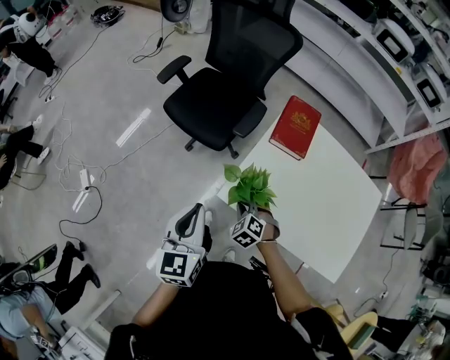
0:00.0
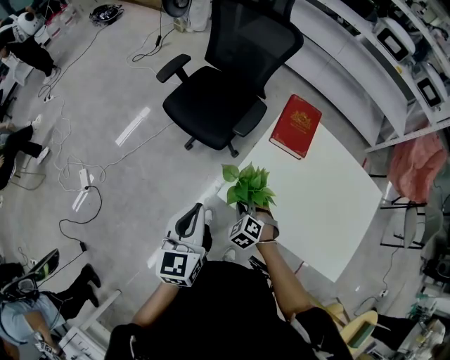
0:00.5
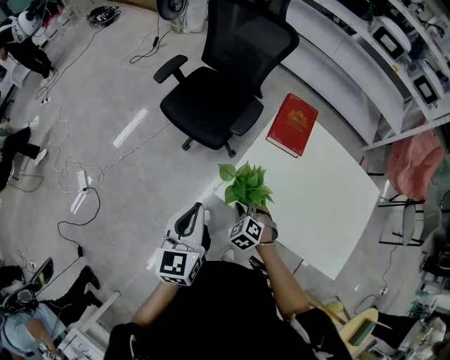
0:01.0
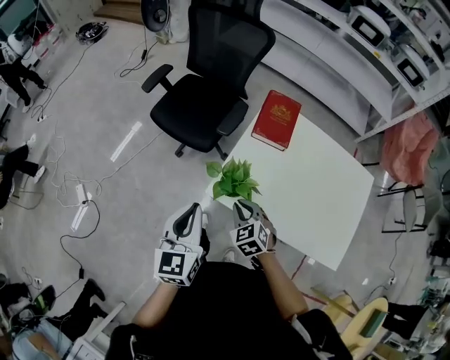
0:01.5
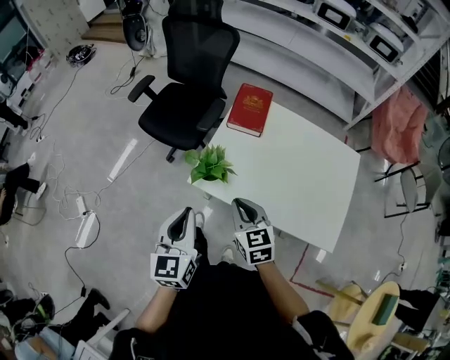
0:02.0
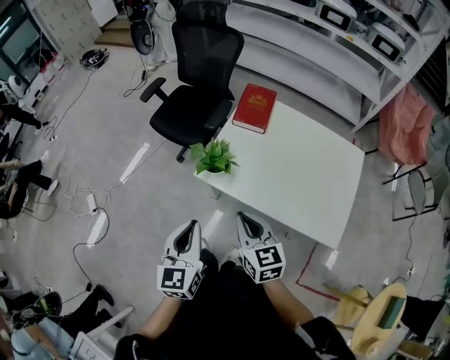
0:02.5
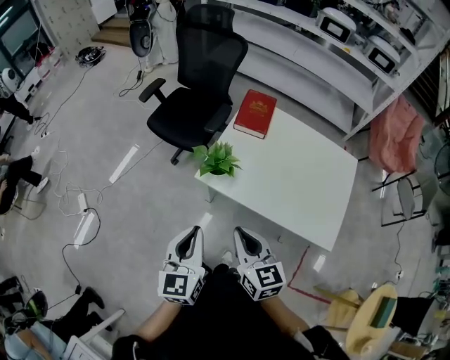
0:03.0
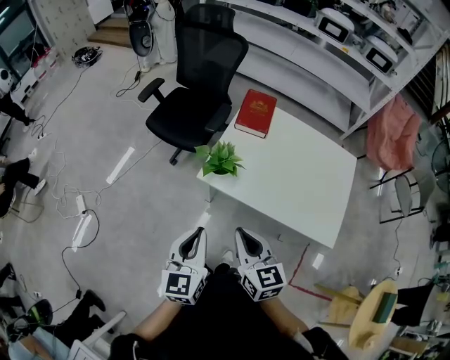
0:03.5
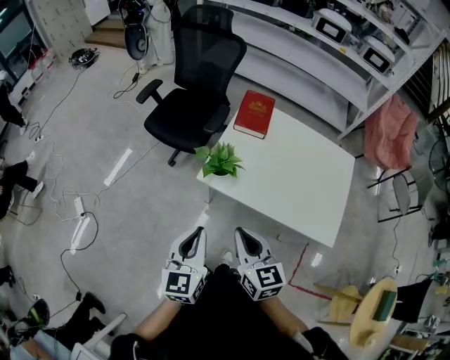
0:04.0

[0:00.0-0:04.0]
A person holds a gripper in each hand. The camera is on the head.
0:00.0 to 0:02.0: The right gripper moves upward, backward and to the right, about 25 cm, and tilts its fingers roughly 30 degrees upward; the left gripper heads backward and to the right, covering roughly 15 cm.
0:02.0 to 0:04.0: The right gripper goes about 15 cm backward, upward and to the left. The left gripper travels backward by some 10 cm.

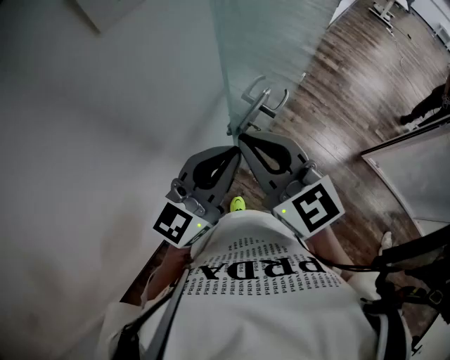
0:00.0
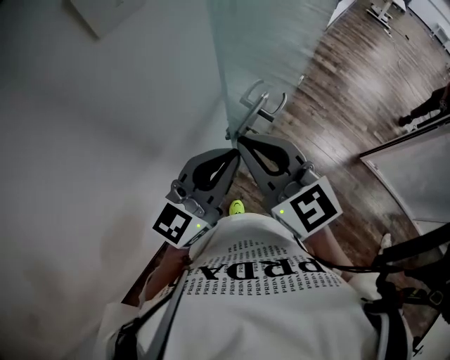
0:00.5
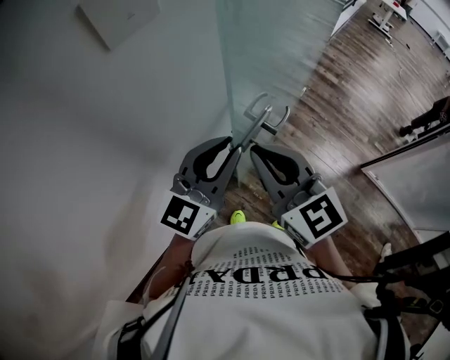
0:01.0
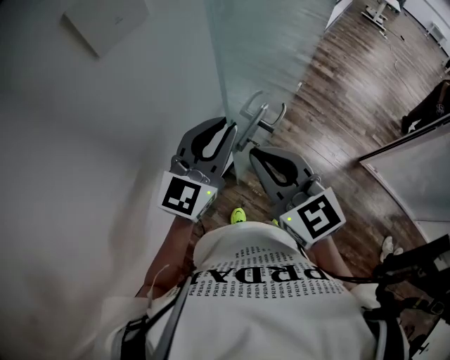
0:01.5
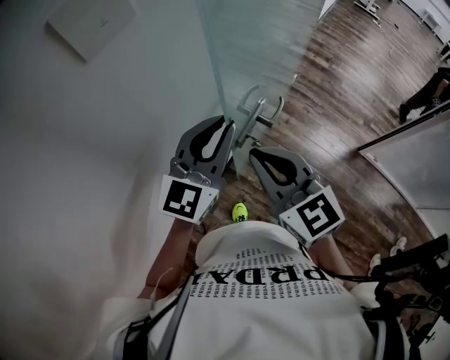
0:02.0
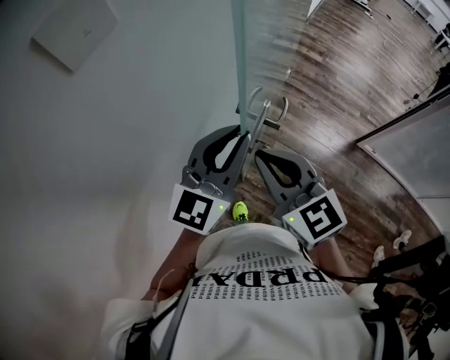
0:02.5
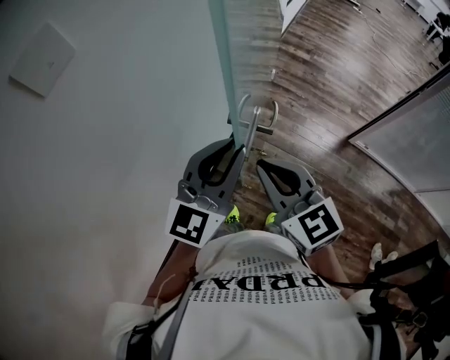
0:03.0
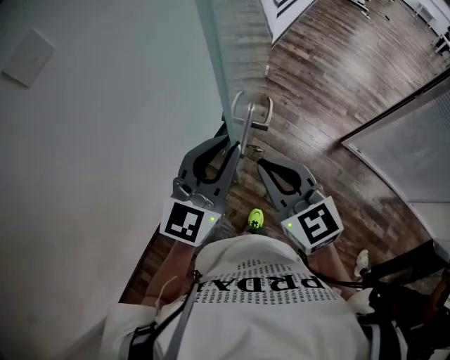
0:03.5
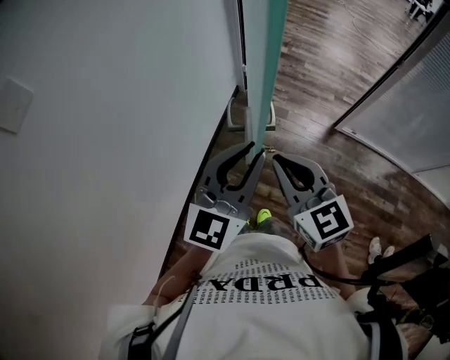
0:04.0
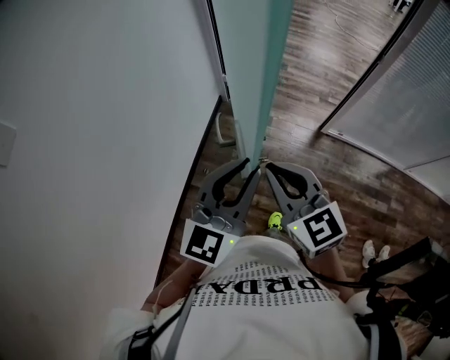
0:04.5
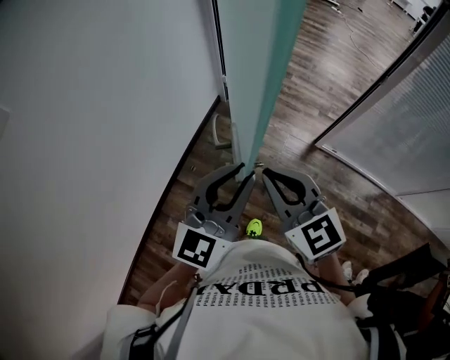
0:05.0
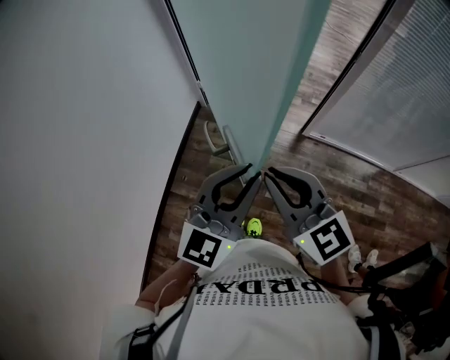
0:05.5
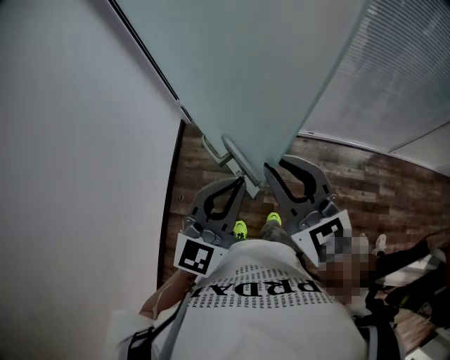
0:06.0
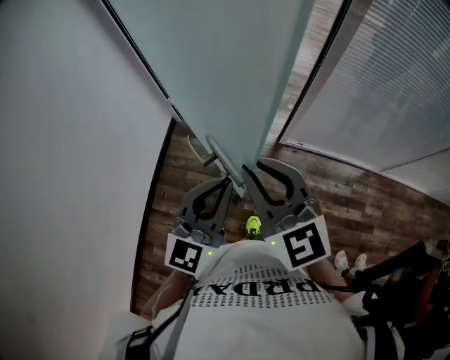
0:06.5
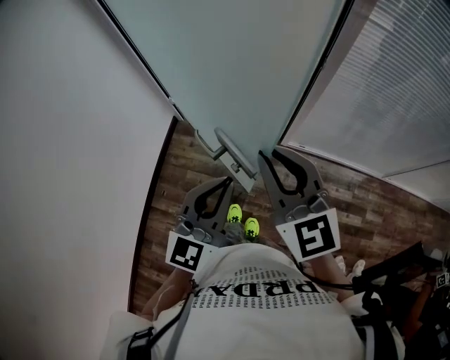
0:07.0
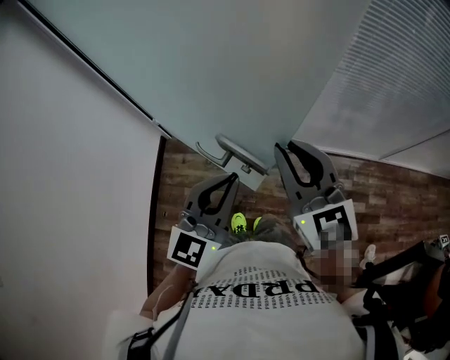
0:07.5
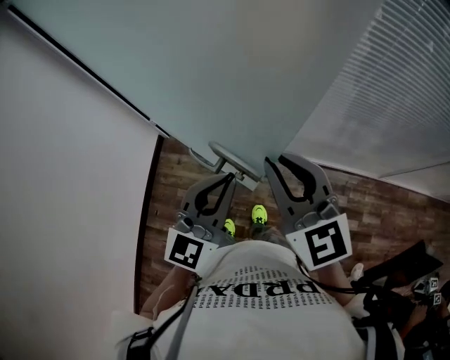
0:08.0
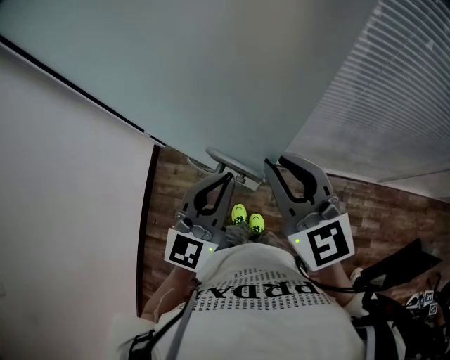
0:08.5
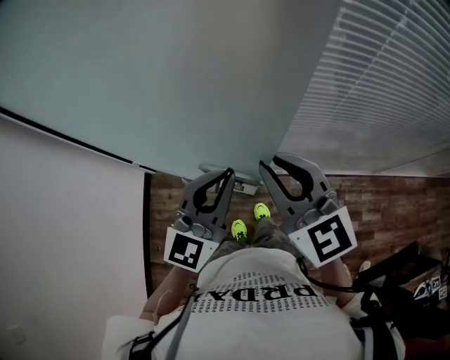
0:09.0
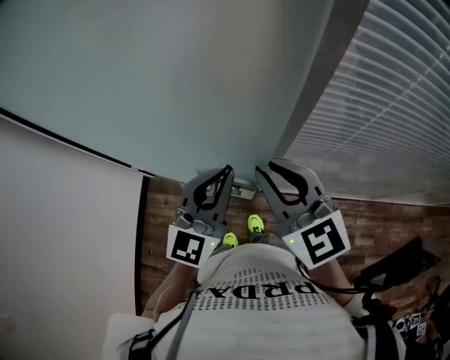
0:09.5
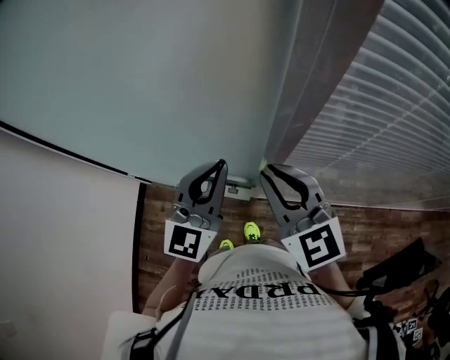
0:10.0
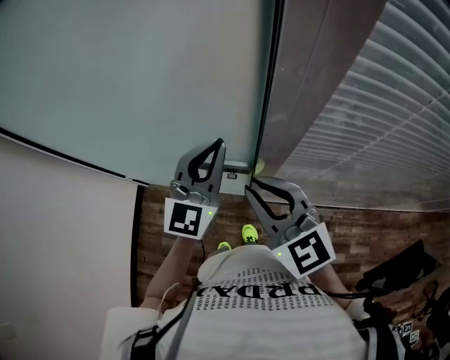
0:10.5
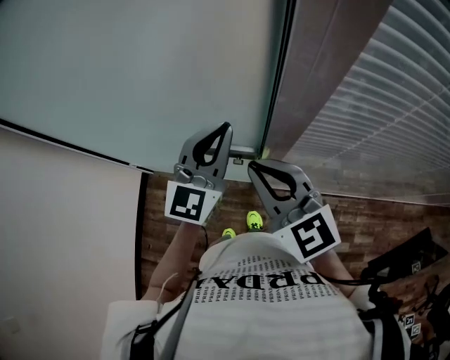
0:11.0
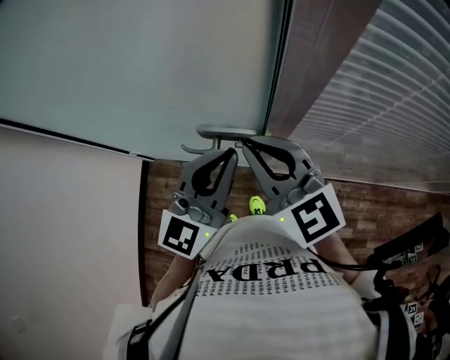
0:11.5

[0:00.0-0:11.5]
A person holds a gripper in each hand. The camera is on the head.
0:00.0 to 0:02.0: The left gripper travels forward by approximately 10 cm.
0:02.0 to 0:04.0: The right gripper is displaced to the right and downward by roughly 30 cm, and turns by roughly 20 degrees; the left gripper travels to the right by roughly 25 cm.
0:04.0 to 0:06.0: The left gripper travels to the right and downward by about 15 cm. Meanwhile the right gripper is displaced to the right by some 15 cm, and rotates approximately 20 degrees.
0:06.0 to 0:09.5: The grippers make only small movements.
0:09.5 to 0:11.5: The left gripper goes forward and returns, roughly 5 cm each way.

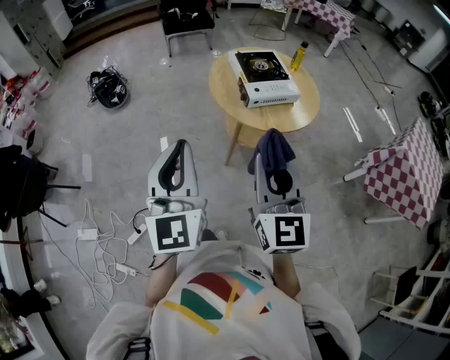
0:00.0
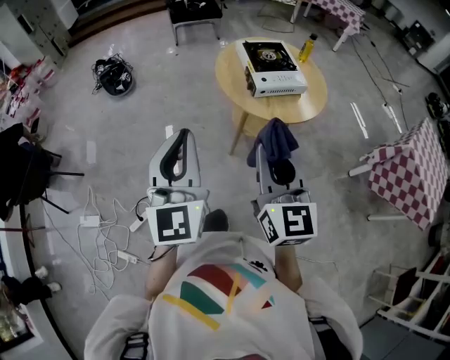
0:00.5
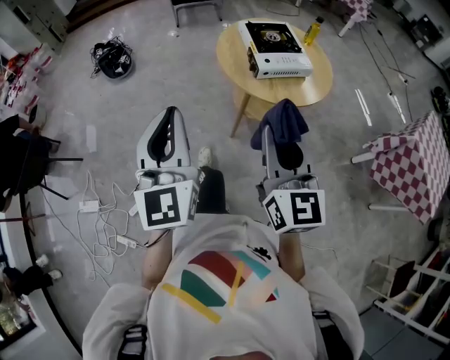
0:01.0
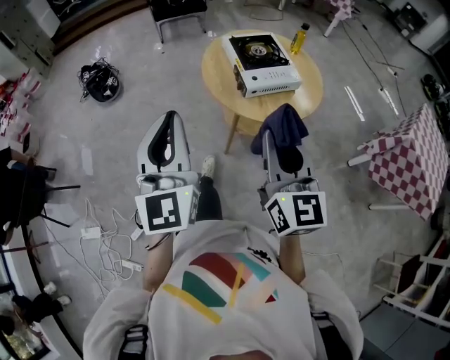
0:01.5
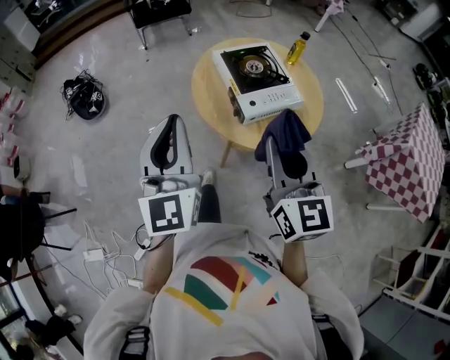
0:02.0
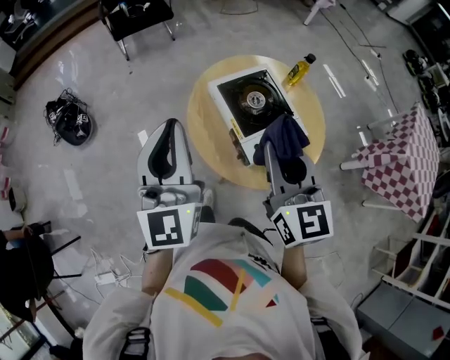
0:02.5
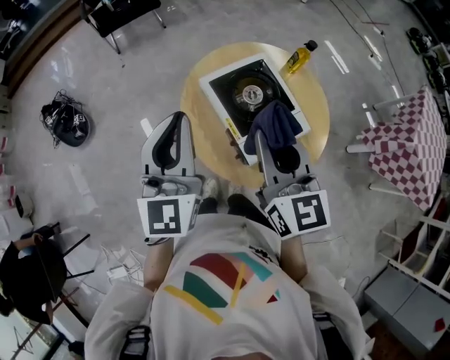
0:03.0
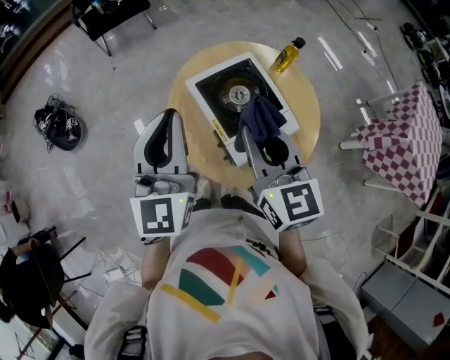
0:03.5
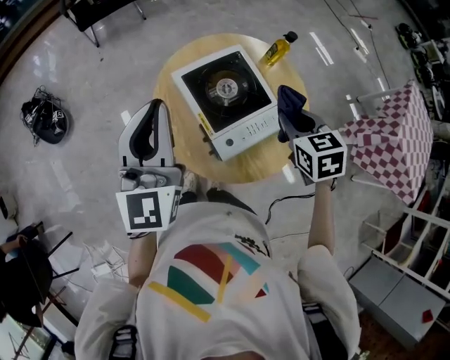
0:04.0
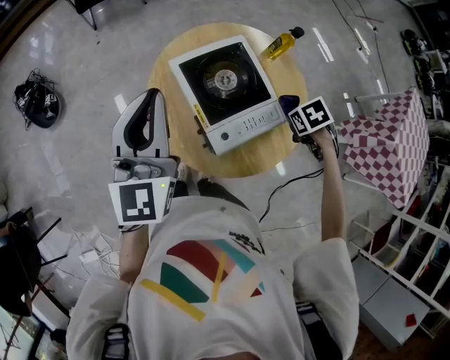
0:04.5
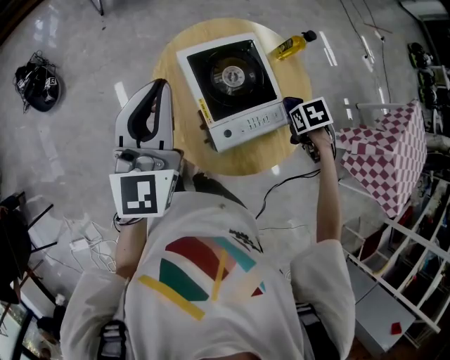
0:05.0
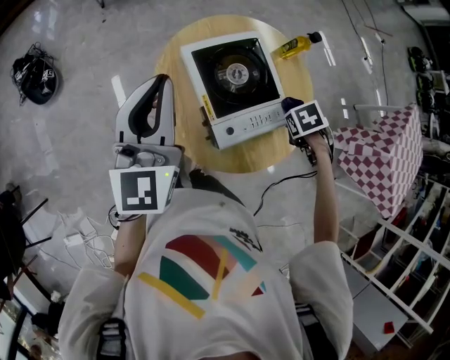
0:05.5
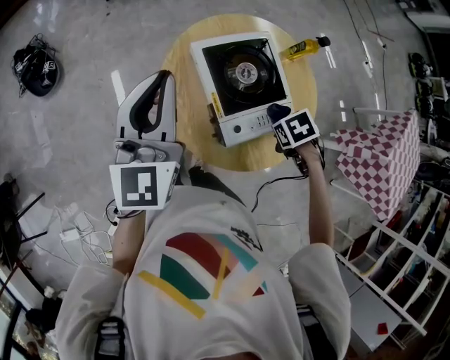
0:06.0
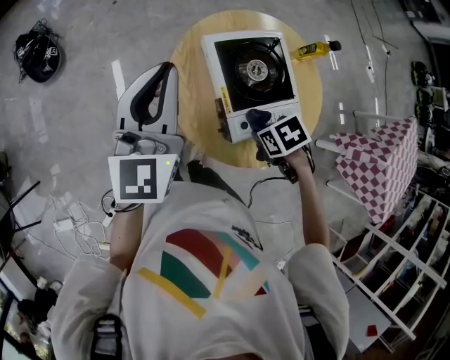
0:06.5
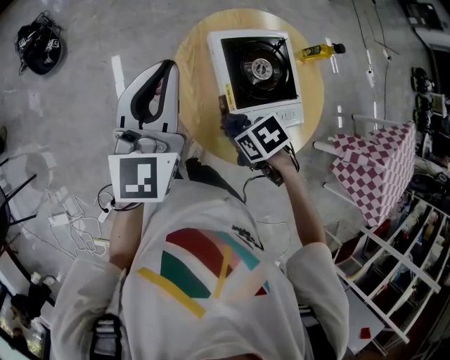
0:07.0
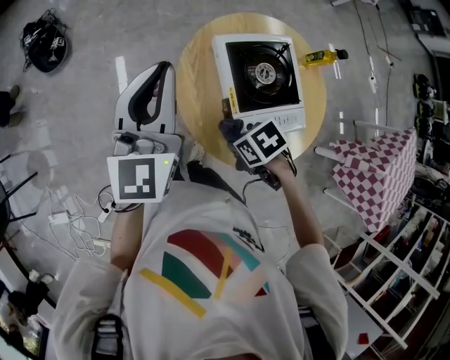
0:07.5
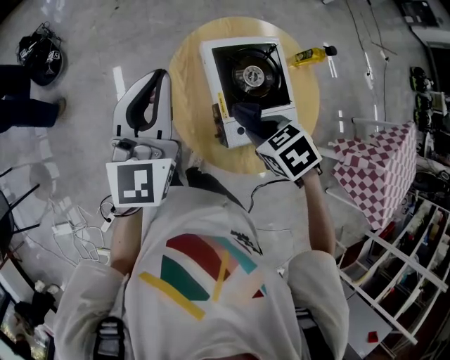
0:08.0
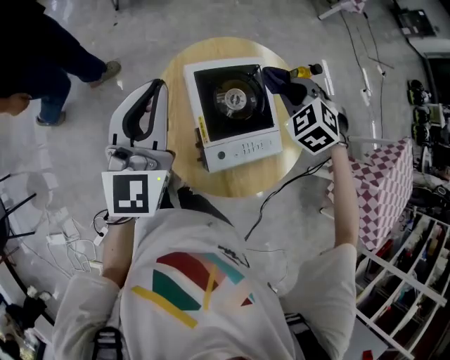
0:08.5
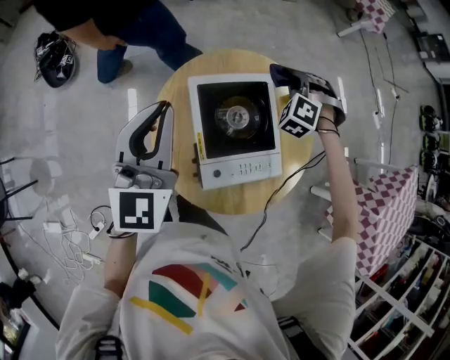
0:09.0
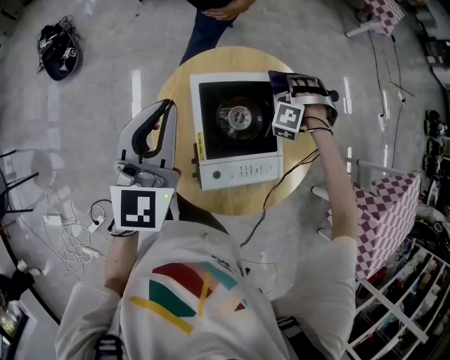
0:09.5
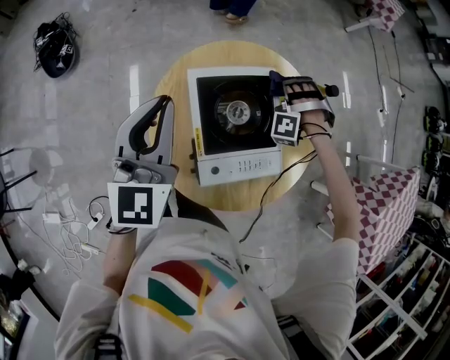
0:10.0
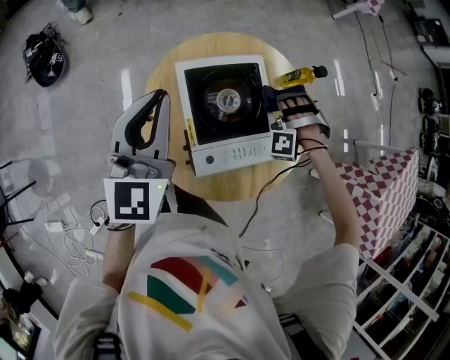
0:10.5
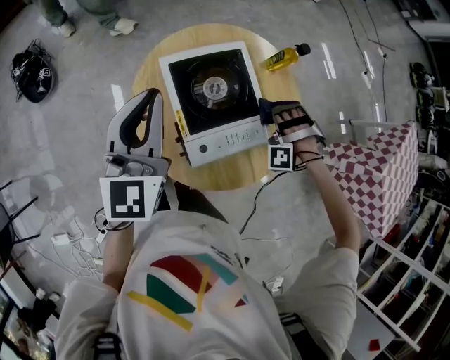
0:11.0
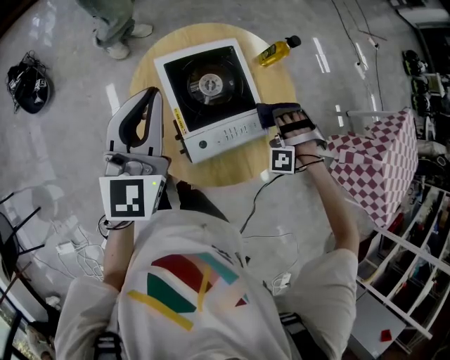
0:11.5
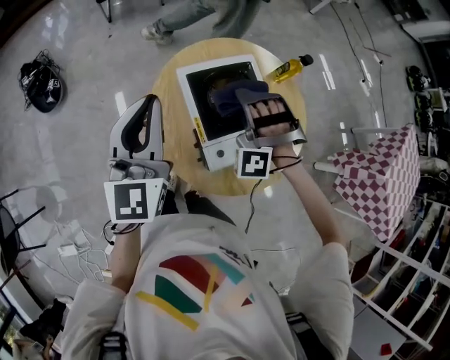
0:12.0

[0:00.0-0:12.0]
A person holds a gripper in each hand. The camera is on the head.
0:00.0 to 0:02.0: The left gripper moves some 25 cm.
0:02.0 to 0:04.0: The left gripper moves approximately 30 cm.
0:04.0 to 0:06.0: The left gripper shifts roughly 5 cm downward.
0:08.0 to 0:10.0: The left gripper ends up some 10 cm from where it was.
0:10.0 to 0:12.0: The left gripper ends up roughly 5 cm from where it was.
